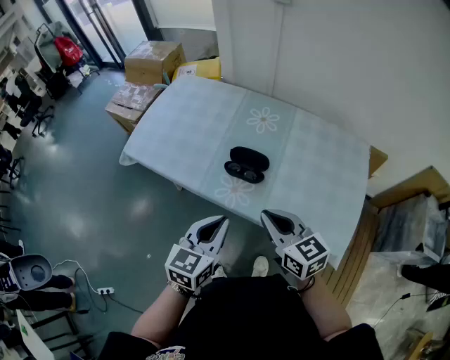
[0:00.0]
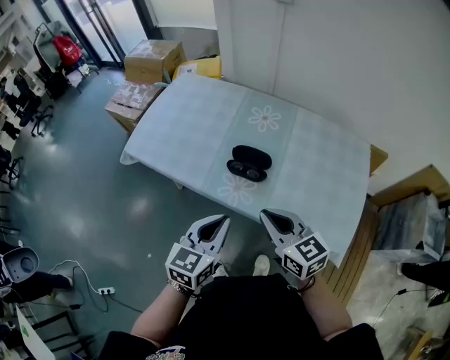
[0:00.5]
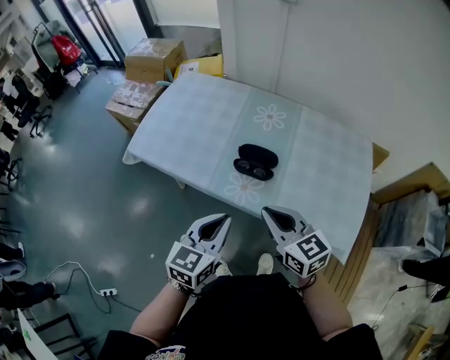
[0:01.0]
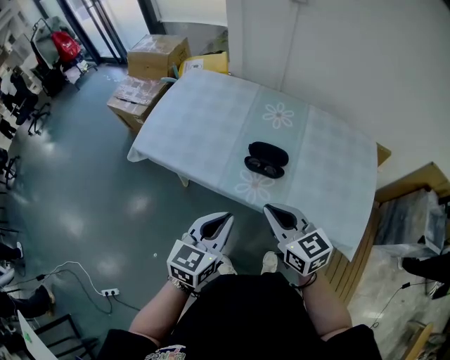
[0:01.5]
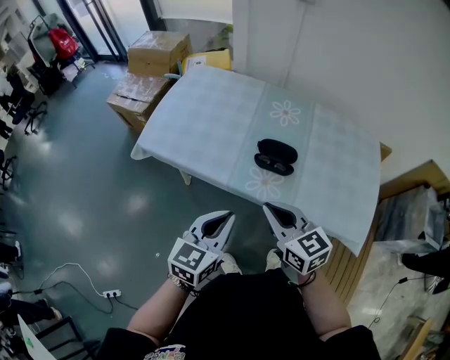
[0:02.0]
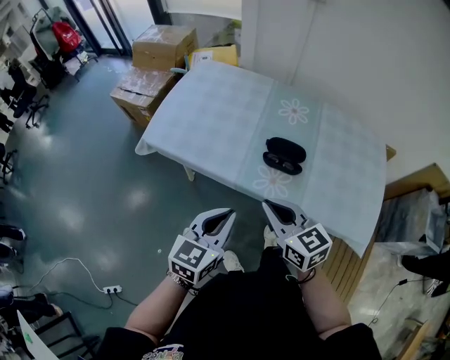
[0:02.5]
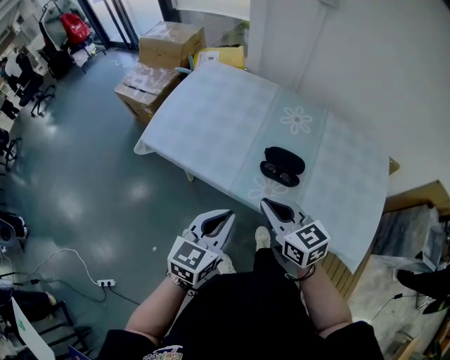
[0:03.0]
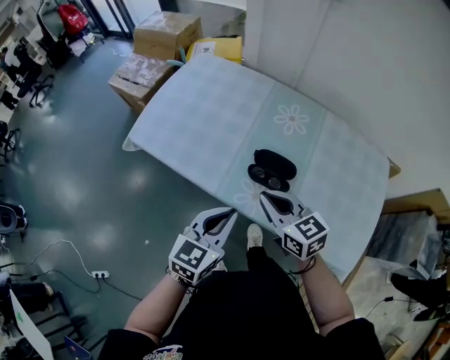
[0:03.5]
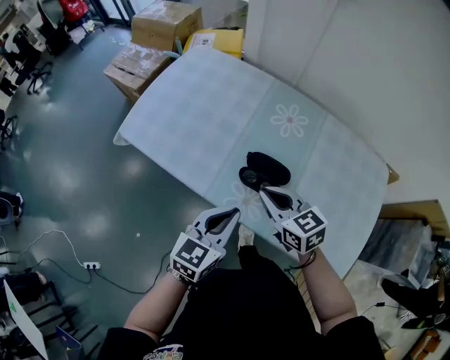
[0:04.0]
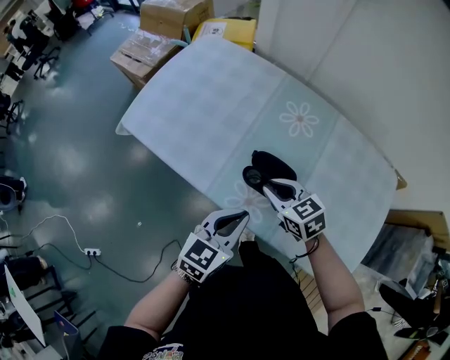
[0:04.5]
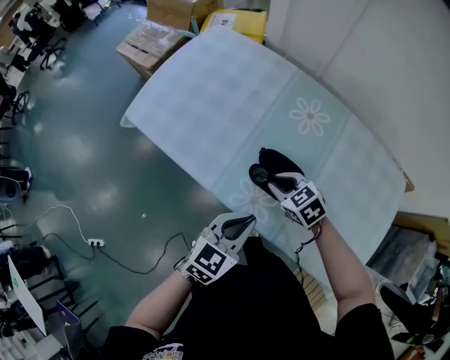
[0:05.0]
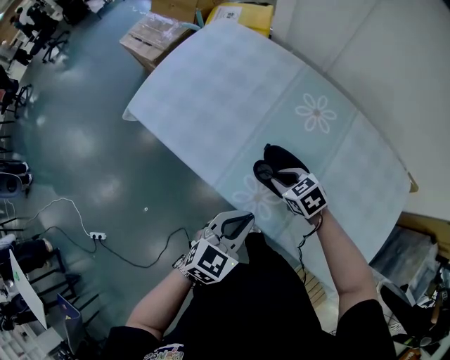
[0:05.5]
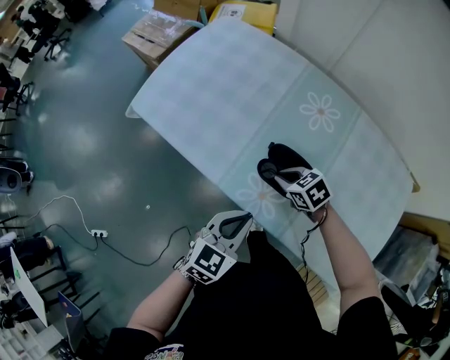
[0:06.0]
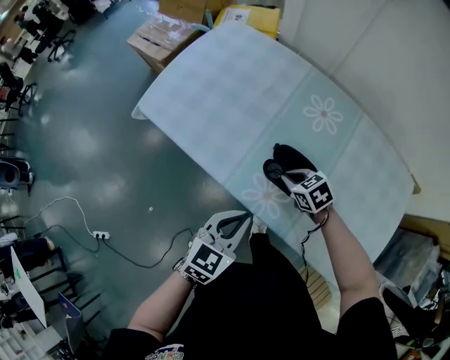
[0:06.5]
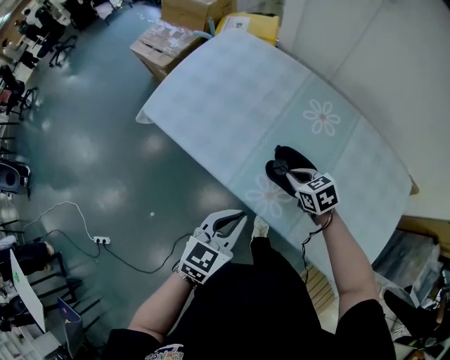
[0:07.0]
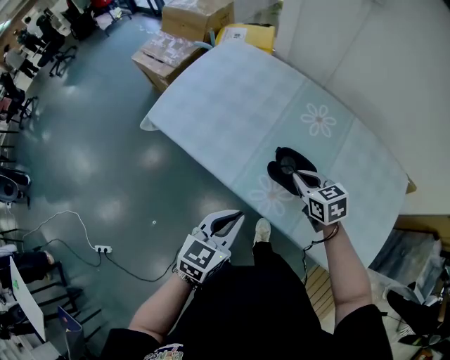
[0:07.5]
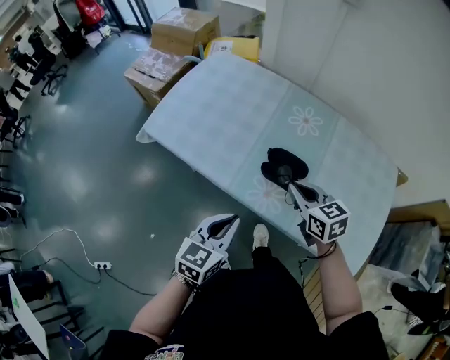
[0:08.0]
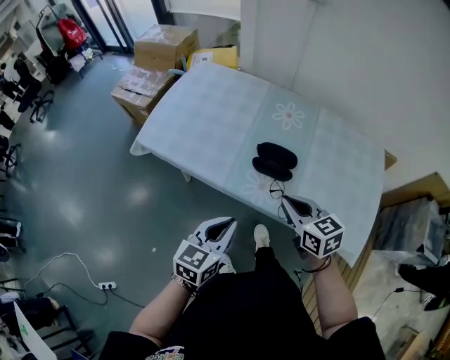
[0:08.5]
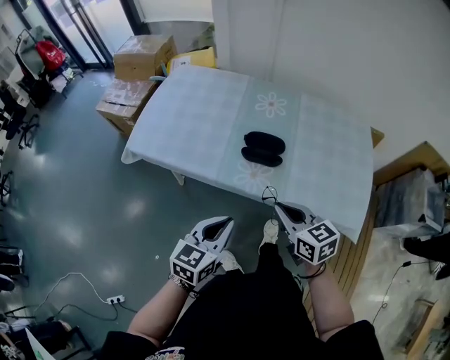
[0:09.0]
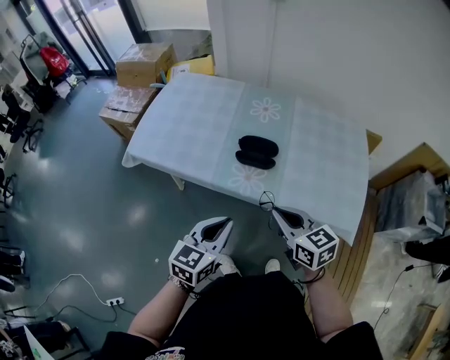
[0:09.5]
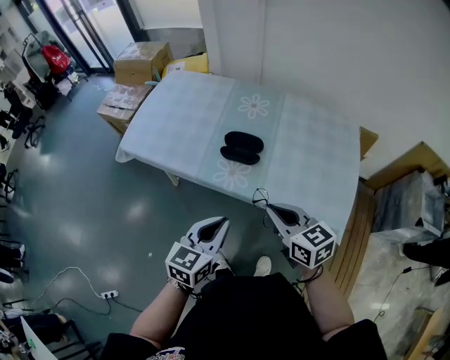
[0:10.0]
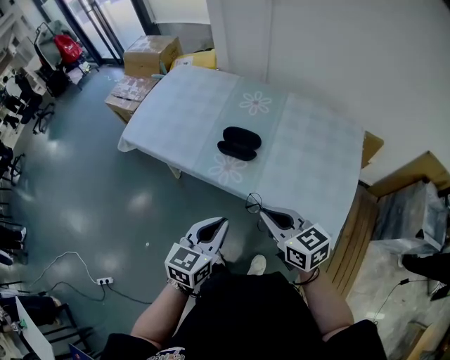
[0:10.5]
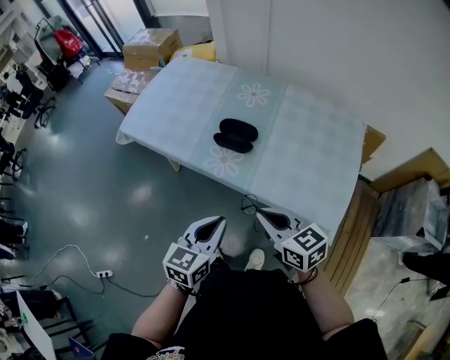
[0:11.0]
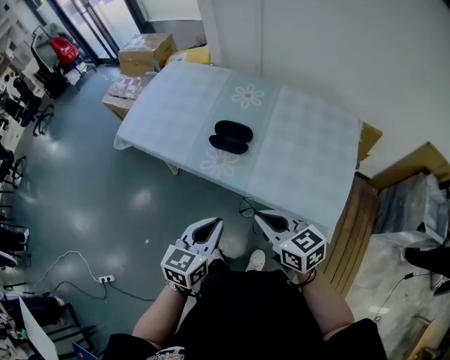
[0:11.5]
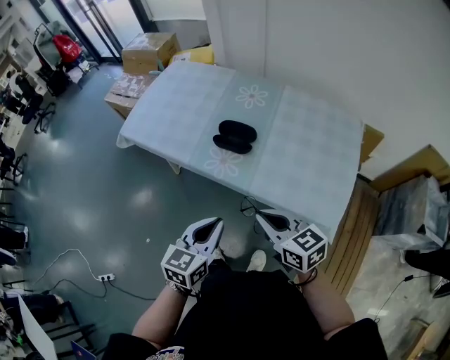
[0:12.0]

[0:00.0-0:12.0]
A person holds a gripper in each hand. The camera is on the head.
0:00.0 to 0:02.0: The two grippers go approximately 10 cm to the left.
0:02.0 to 0:04.0: The left gripper moves forward and to the right, some 15 cm; the right gripper shifts about 20 cm forward, to the right and downward.
0:04.0 to 0:06.0: The left gripper is displaced downward by about 5 cm, while the right gripper heads downward, covering some 15 cm, and rotates approximately 30 degrees.
0:06.0 to 0:08.0: The left gripper shifts about 10 cm to the left. Meanwhile the right gripper heads upward, covering approximately 15 cm, and turns by some 40 degrees.
0:08.0 to 0:10.0: The left gripper is displaced backward and to the right by some 15 cm. Meanwhile the right gripper shifts approximately 20 cm backward.
0:10.0 to 0:12.0: The right gripper changes place by some 5 cm. The left gripper ends up approximately 5 cm from where it was.

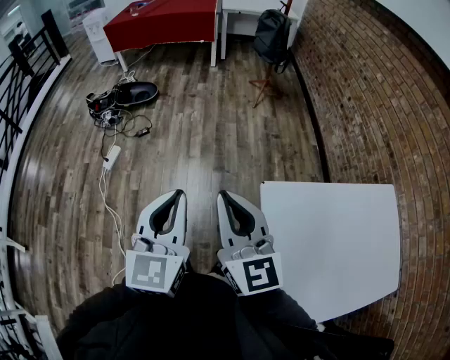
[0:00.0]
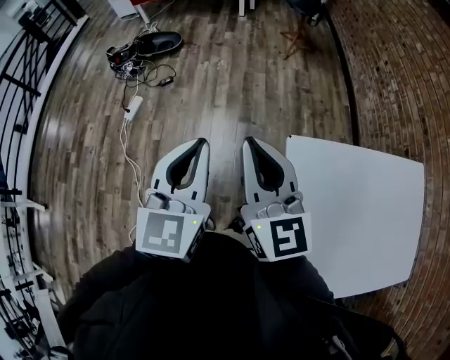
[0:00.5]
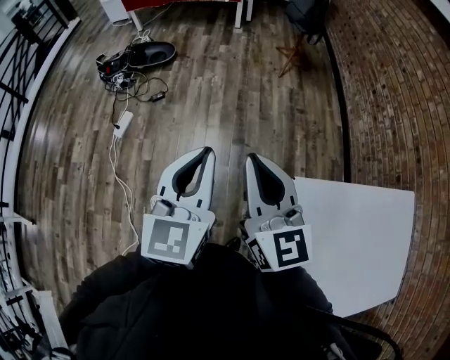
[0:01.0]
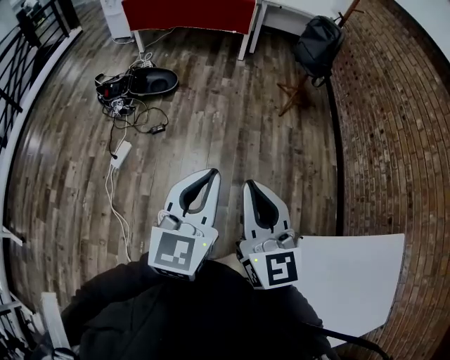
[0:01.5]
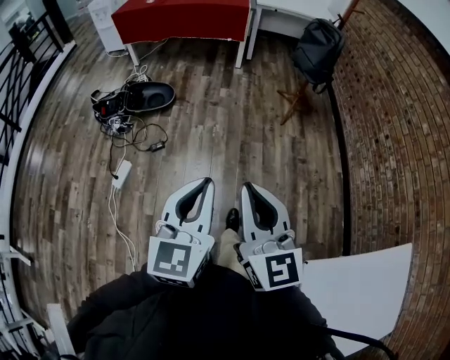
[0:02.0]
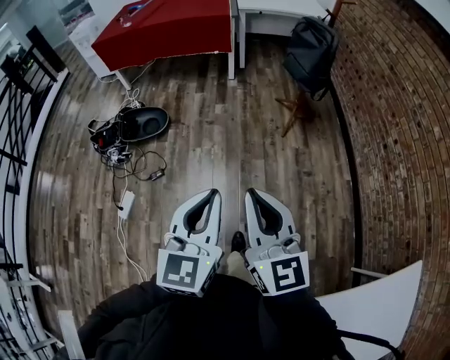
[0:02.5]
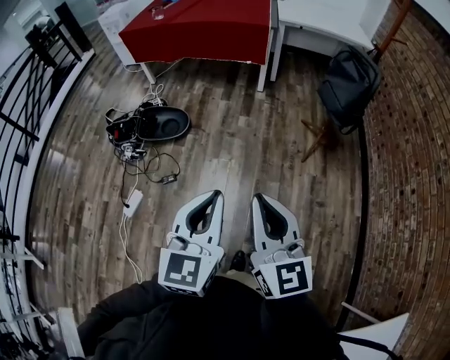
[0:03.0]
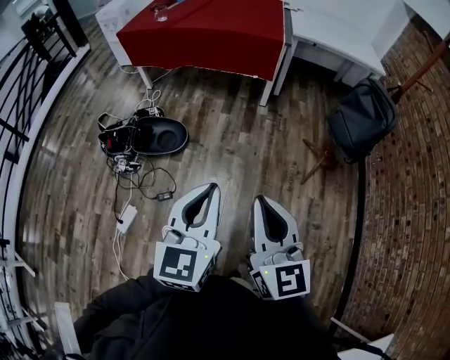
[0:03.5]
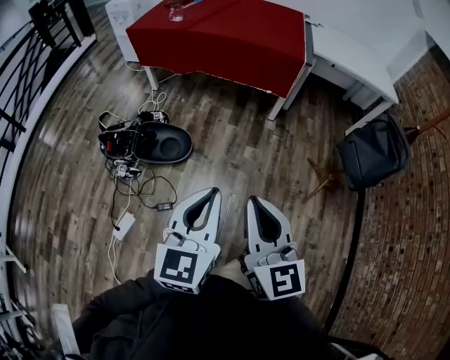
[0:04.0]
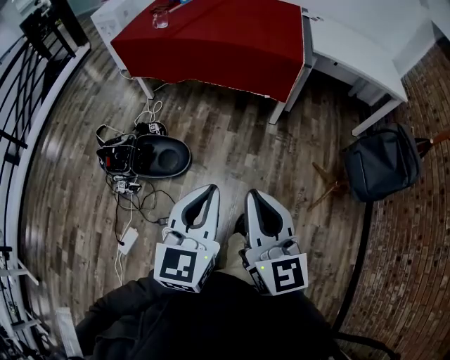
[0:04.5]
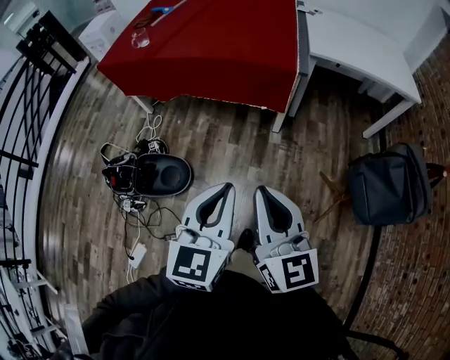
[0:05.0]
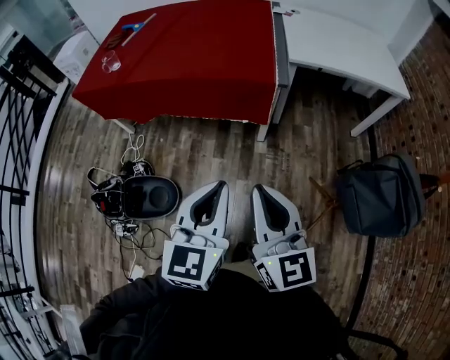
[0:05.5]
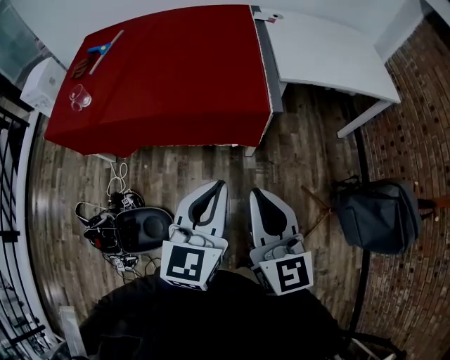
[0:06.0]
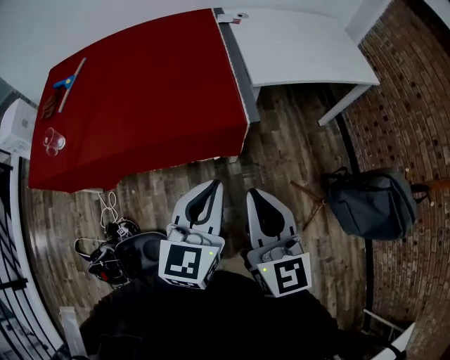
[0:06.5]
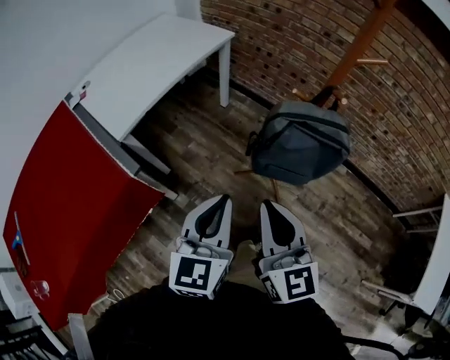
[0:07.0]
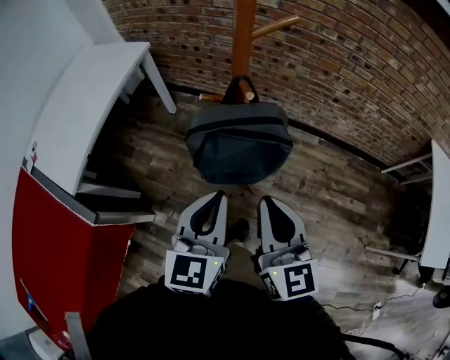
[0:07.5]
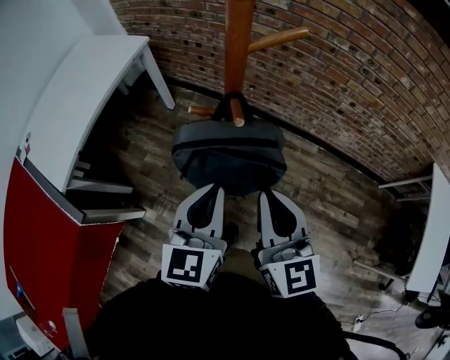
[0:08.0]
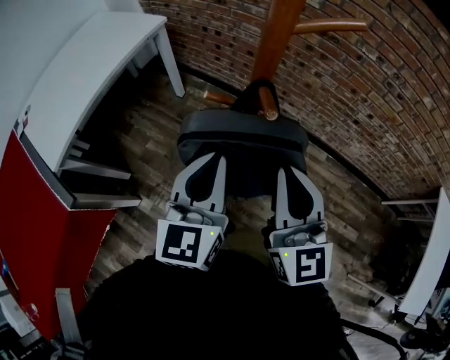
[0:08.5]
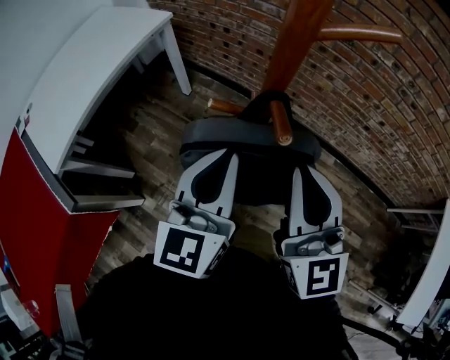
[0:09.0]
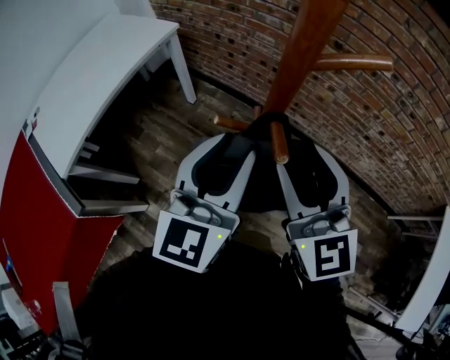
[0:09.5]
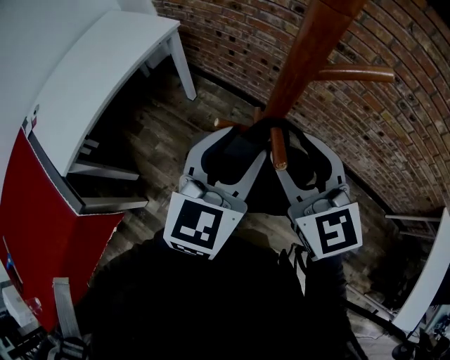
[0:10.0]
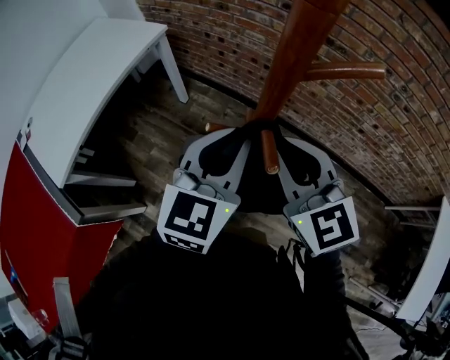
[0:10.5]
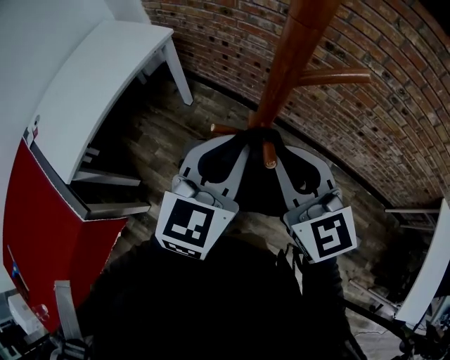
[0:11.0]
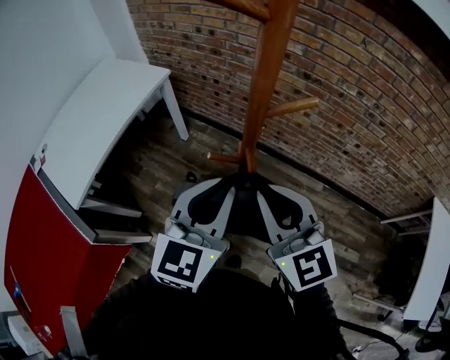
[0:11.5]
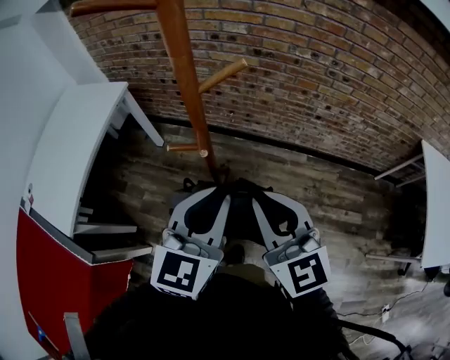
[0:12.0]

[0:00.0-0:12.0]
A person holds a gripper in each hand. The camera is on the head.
0:00.0 to 0:02.0: The grippers both shift forward by about 40 cm.
0:02.0 to 0:04.0: The pair of grippers is taken forward, about 60 cm.
0:04.0 to 0:06.0: The pair of grippers is taken forward, roughly 60 cm.
0:06.0 to 0:08.0: The pair of grippers is taken roughly 60 cm. The right gripper changes its angle by about 70 degrees, while the left gripper rotates approximately 60 degrees.
0:08.0 to 0:10.0: Both grippers move forward, some 15 cm. The left gripper opens. The right gripper turns by about 30 degrees, and opens up.
0:10.0 to 0:12.0: The right gripper travels backward by some 15 cm, and closes up. Meanwhile the left gripper travels backward and upward by roughly 15 cm, and closes up.

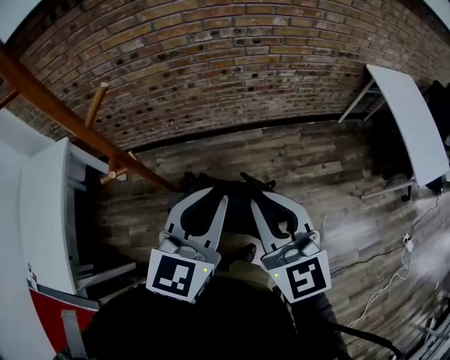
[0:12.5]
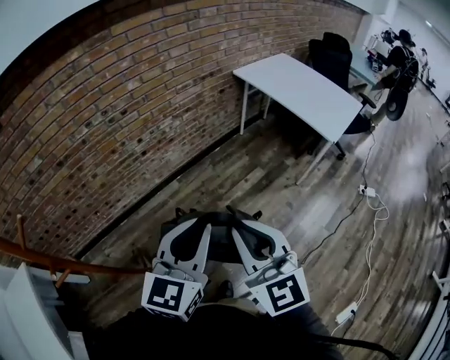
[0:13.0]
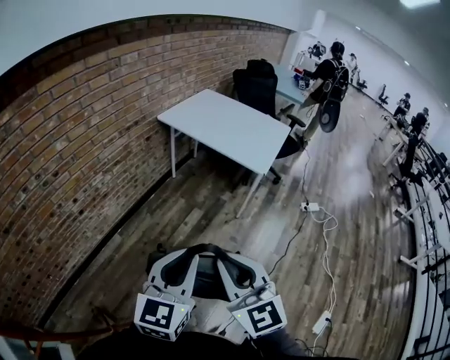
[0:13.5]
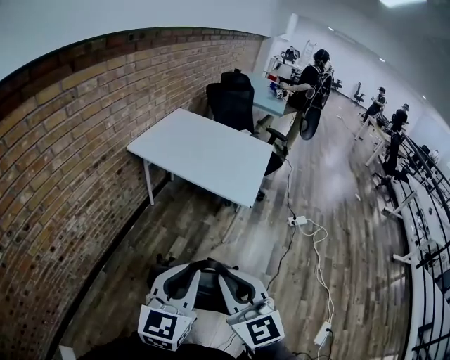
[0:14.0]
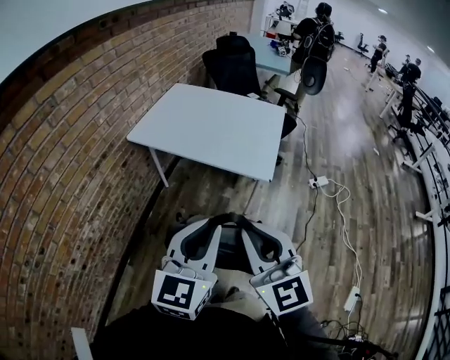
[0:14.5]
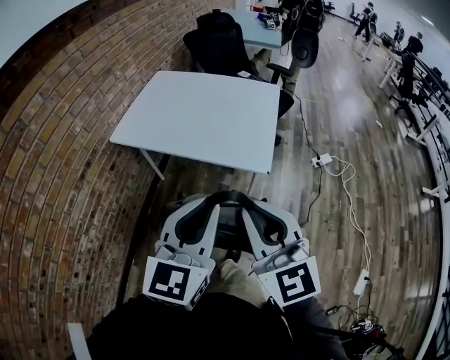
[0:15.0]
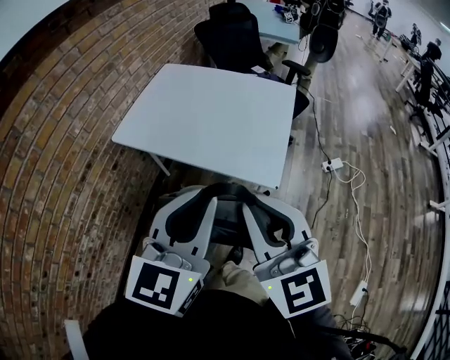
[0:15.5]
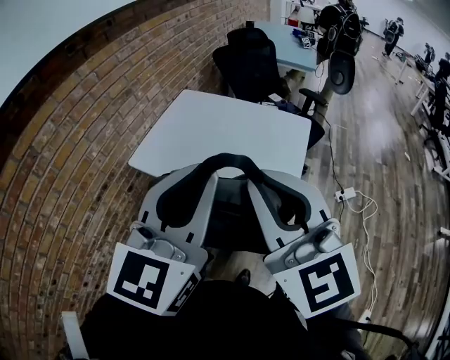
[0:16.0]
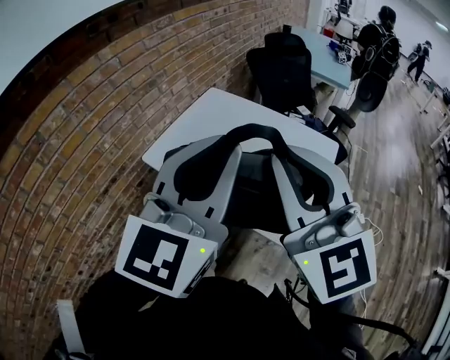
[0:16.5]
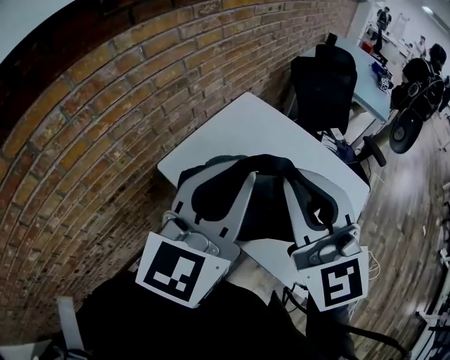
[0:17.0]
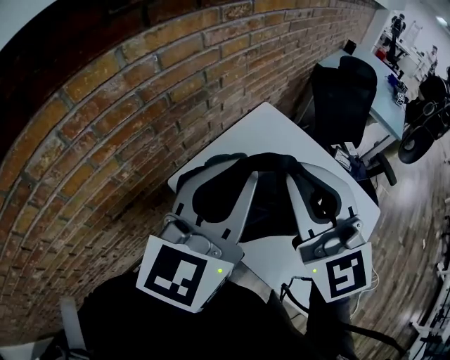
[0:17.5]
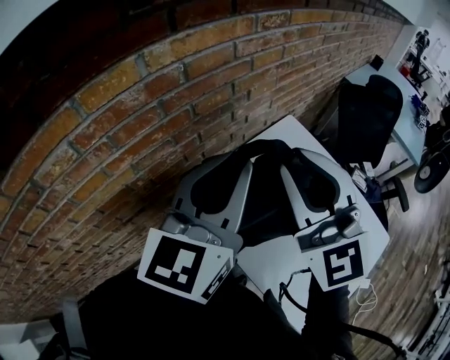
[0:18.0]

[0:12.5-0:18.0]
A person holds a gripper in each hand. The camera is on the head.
0:12.5 to 0:14.5: Both grippers are carried roughly 60 cm. The right gripper changes its angle by roughly 60 degrees. Meanwhile the left gripper changes its angle by approximately 60 degrees.
0:14.5 to 0:16.0: Both grippers move forward and upward, roughly 30 cm.
0:16.0 to 0:18.0: Both grippers are carried roughly 50 cm. The left gripper swivels roughly 30 degrees. Meanwhile the right gripper turns by approximately 30 degrees.
